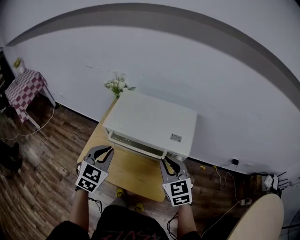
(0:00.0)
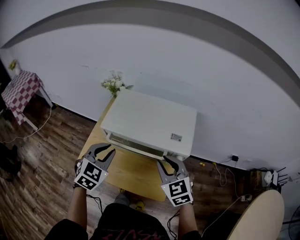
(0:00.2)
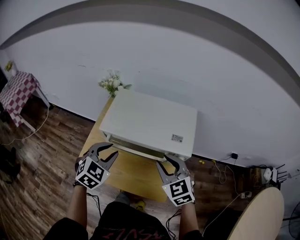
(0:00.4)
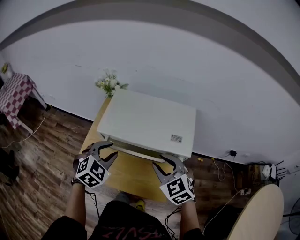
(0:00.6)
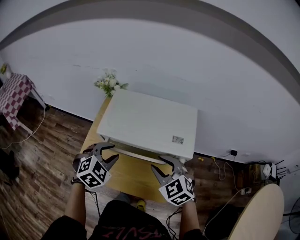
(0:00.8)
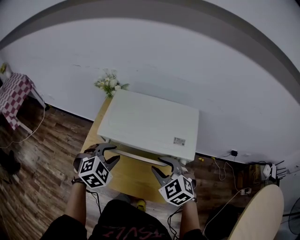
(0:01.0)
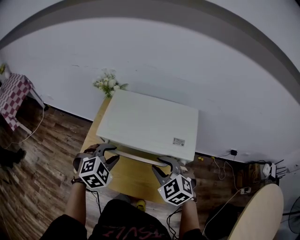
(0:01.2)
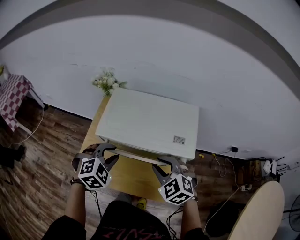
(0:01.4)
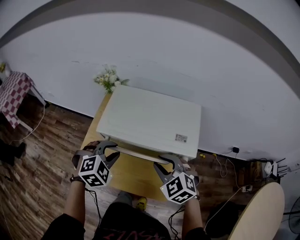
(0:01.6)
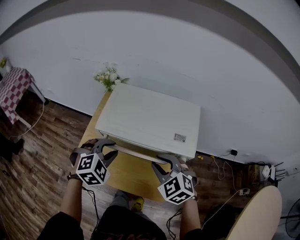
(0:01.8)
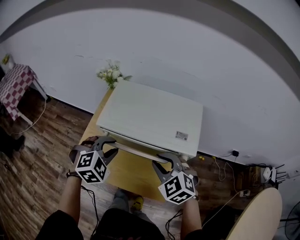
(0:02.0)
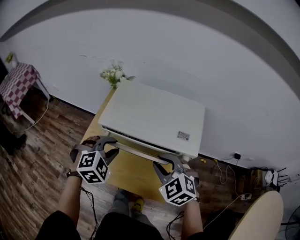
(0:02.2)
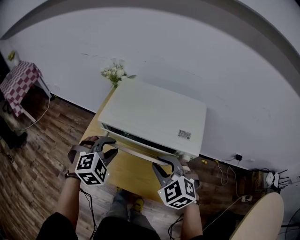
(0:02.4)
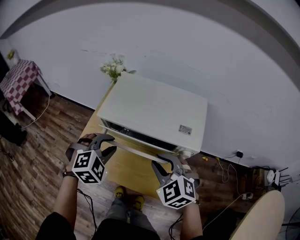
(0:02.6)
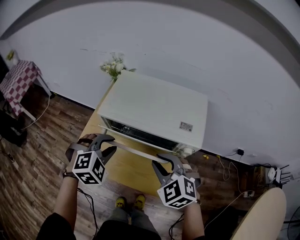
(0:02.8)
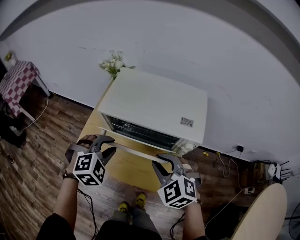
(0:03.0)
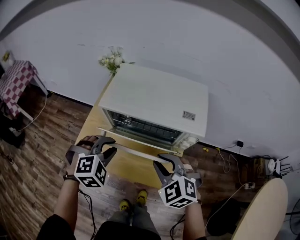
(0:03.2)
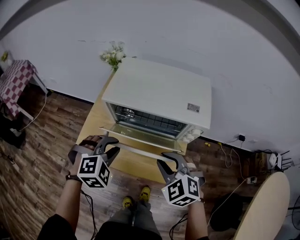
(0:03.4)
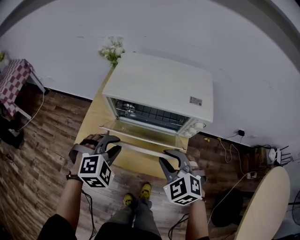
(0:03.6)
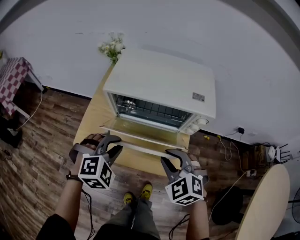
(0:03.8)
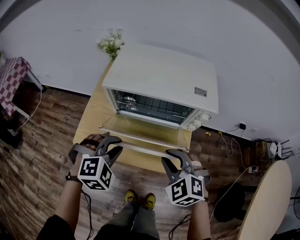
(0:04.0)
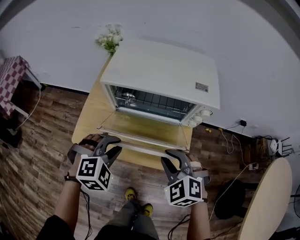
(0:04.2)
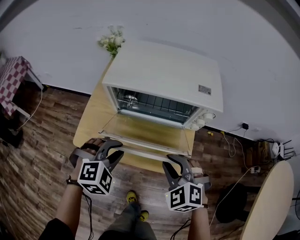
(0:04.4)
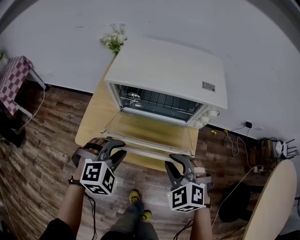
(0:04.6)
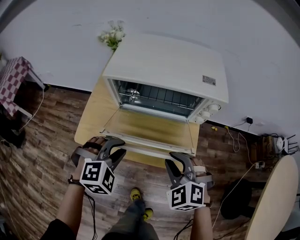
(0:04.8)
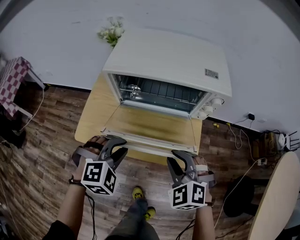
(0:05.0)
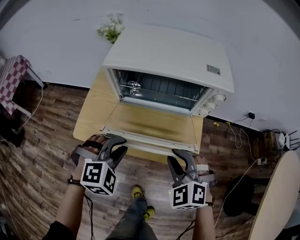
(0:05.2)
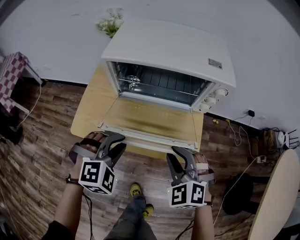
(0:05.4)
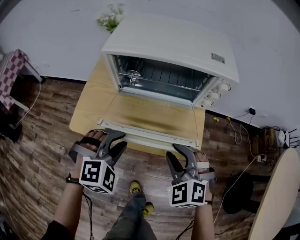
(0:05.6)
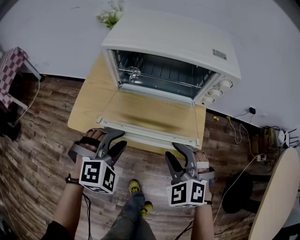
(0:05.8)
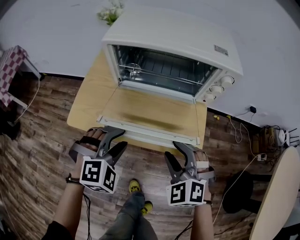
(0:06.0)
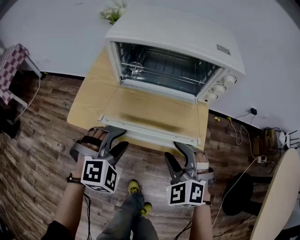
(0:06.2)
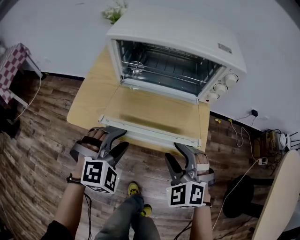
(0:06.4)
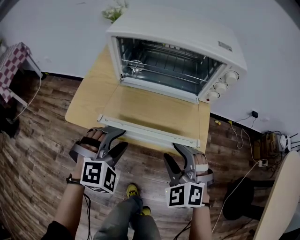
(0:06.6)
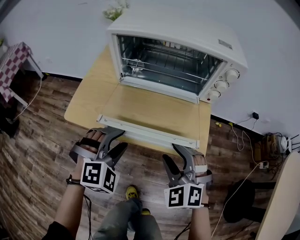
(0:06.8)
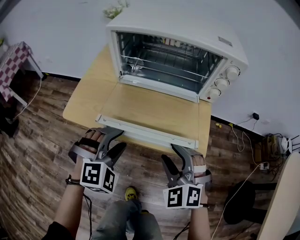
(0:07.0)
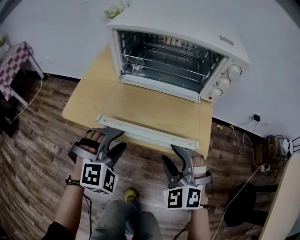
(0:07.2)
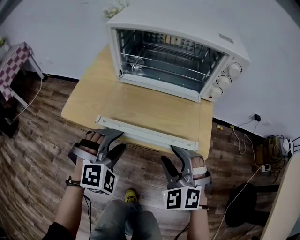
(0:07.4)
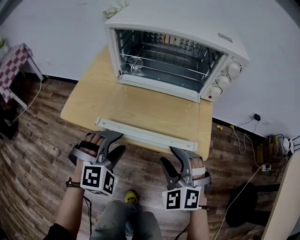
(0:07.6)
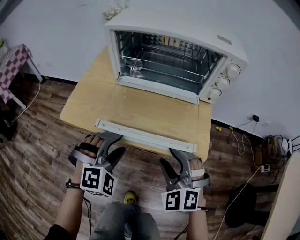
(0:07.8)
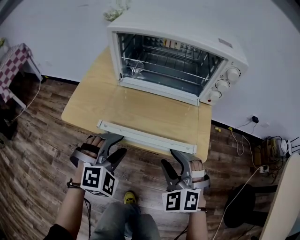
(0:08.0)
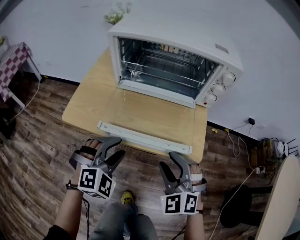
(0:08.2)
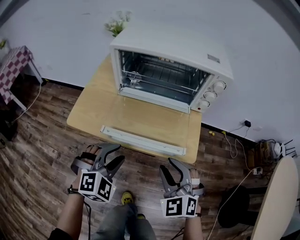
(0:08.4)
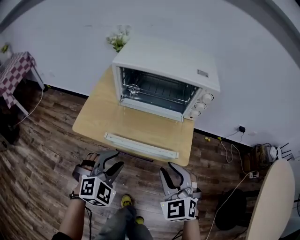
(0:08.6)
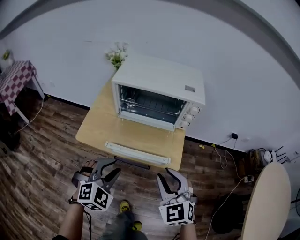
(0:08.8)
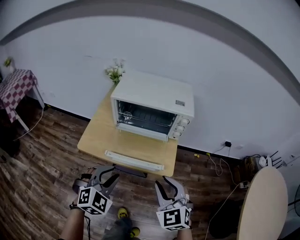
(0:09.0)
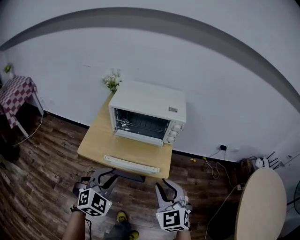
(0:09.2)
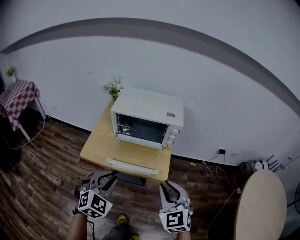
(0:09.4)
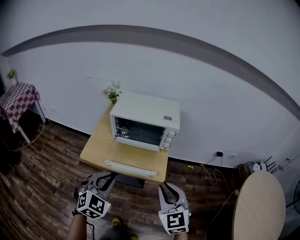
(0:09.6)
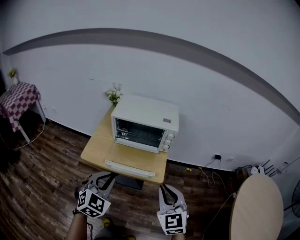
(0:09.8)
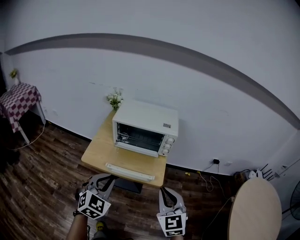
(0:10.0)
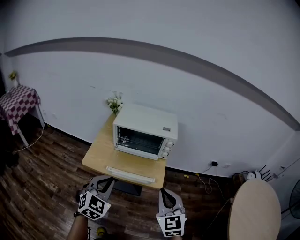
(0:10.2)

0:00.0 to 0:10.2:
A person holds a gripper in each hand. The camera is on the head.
0:00.0 to 0:01.4: The left gripper heads downward, covering roughly 5 cm, rotates roughly 40 degrees, and opens. The right gripper moves approximately 5 cm, and rotates about 30 degrees.
0:01.4 to 0:03.0: The grippers both shift backward by about 5 cm.
0:03.0 to 0:04.4: The right gripper goes some 10 cm downward and backward. The left gripper shifts about 10 cm backward and downward.
0:04.4 to 0:05.8: The grippers both shift downward by approximately 5 cm.
0:05.8 to 0:07.2: The two grippers go roughly 5 cm downward.
0:07.2 to 0:08.8: The right gripper moves upward, some 20 cm, turns by some 20 degrees, and closes, while the left gripper shifts about 15 cm upward and backward.
0:08.8 to 0:10.2: The grippers both shift upward and backward by about 20 cm. The left gripper changes its angle by some 20 degrees, and closes, while the right gripper closes up.

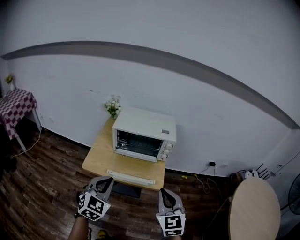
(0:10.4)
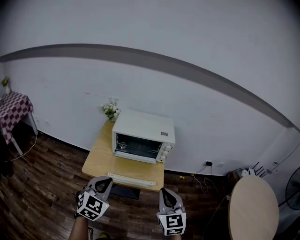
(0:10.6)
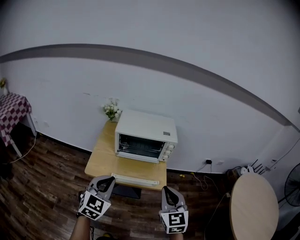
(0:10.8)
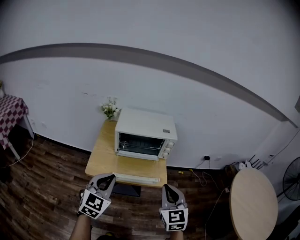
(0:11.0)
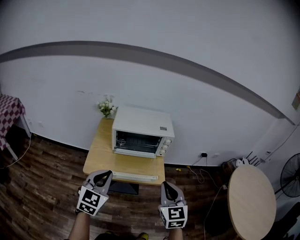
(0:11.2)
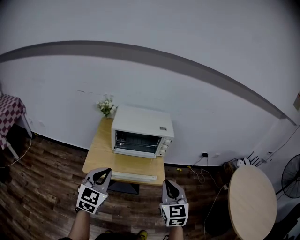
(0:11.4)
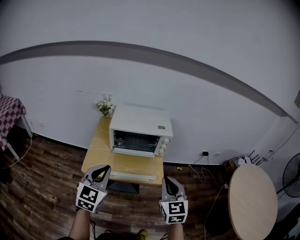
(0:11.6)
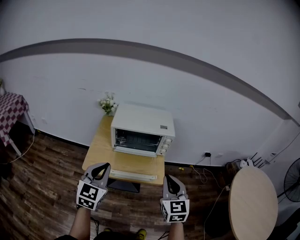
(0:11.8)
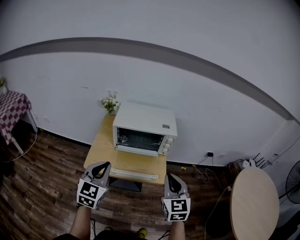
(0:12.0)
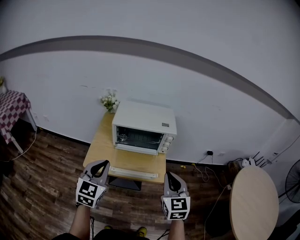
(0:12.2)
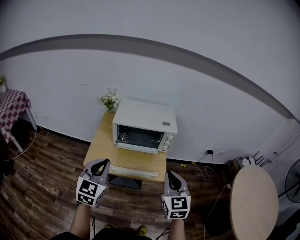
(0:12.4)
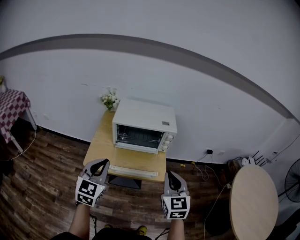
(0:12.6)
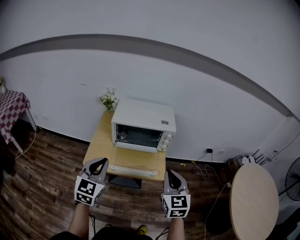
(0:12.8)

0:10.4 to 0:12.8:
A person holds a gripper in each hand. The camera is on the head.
0:10.4 to 0:11.6: The left gripper heads to the left and upward, covering some 10 cm.
0:11.6 to 0:12.8: The grippers make only small movements.

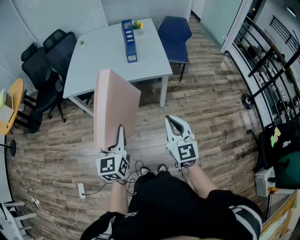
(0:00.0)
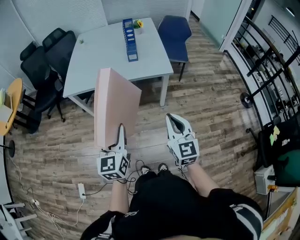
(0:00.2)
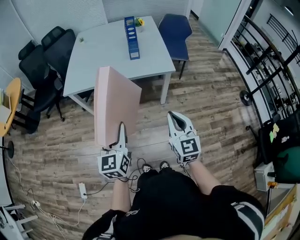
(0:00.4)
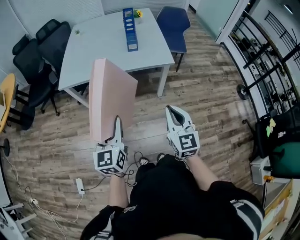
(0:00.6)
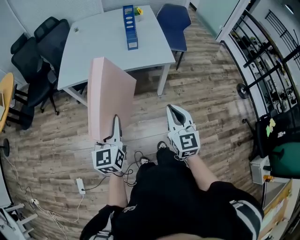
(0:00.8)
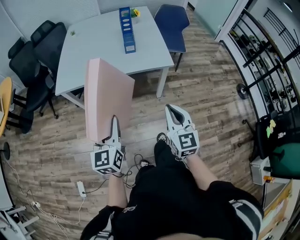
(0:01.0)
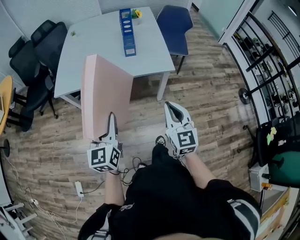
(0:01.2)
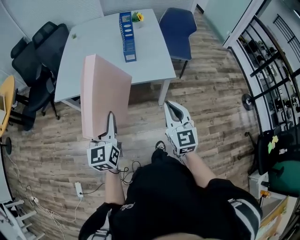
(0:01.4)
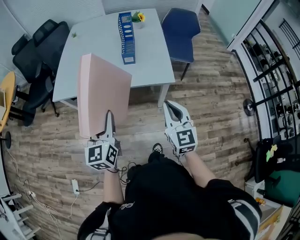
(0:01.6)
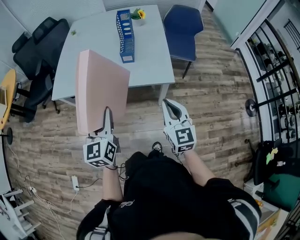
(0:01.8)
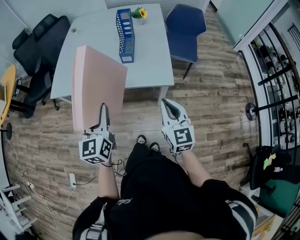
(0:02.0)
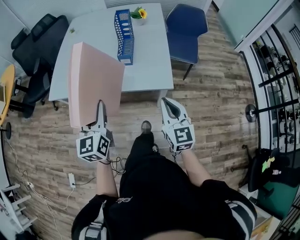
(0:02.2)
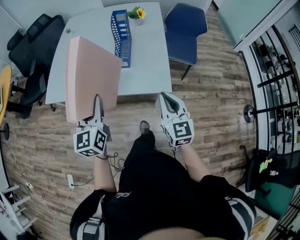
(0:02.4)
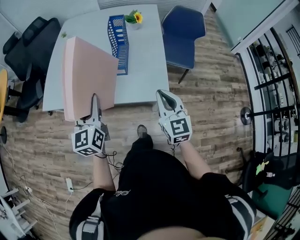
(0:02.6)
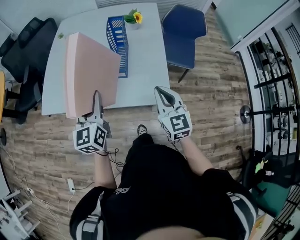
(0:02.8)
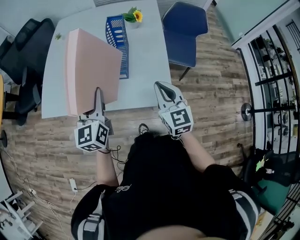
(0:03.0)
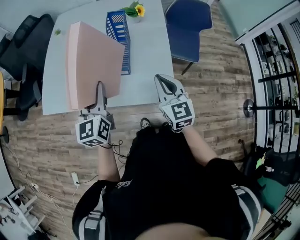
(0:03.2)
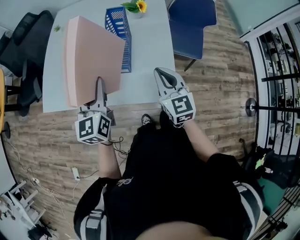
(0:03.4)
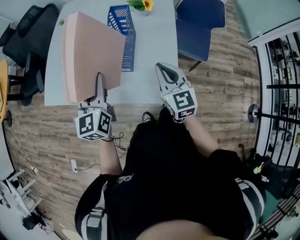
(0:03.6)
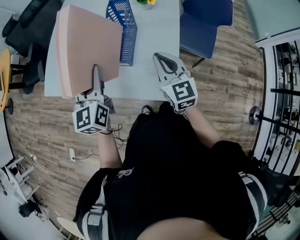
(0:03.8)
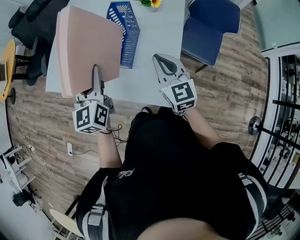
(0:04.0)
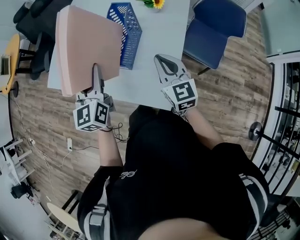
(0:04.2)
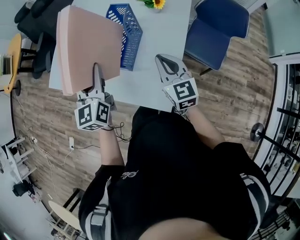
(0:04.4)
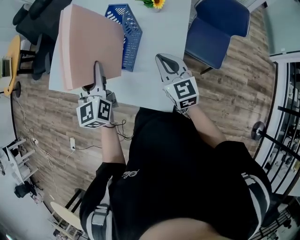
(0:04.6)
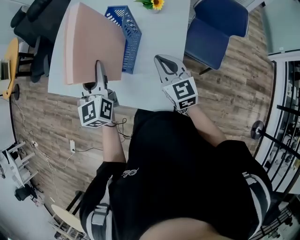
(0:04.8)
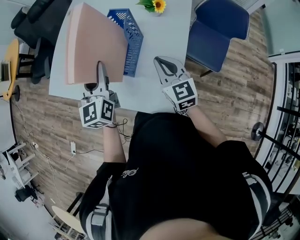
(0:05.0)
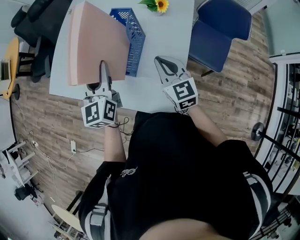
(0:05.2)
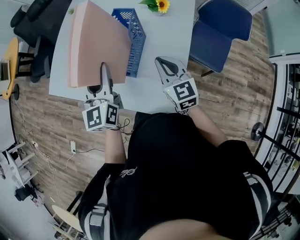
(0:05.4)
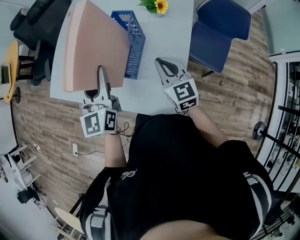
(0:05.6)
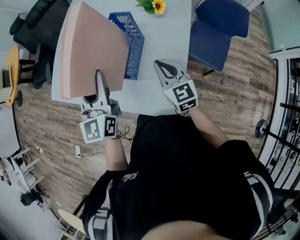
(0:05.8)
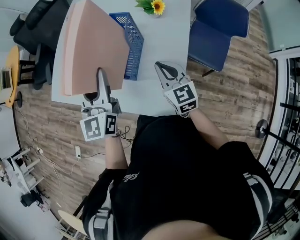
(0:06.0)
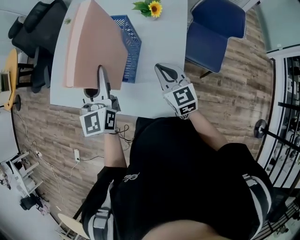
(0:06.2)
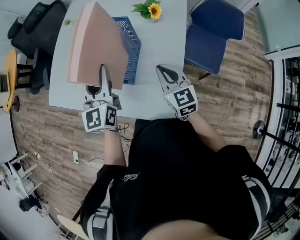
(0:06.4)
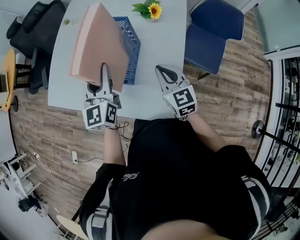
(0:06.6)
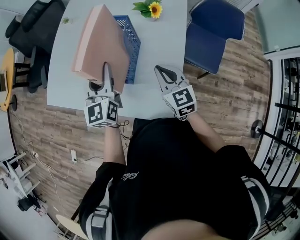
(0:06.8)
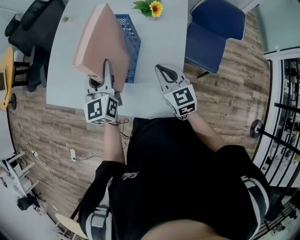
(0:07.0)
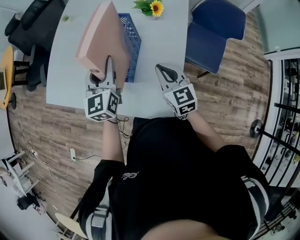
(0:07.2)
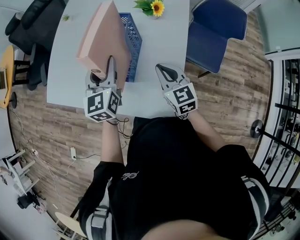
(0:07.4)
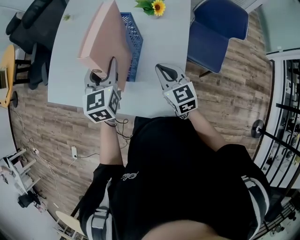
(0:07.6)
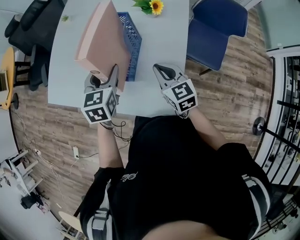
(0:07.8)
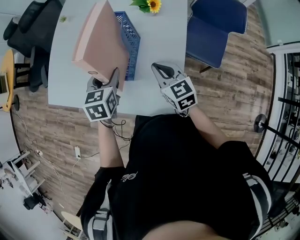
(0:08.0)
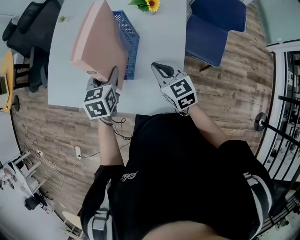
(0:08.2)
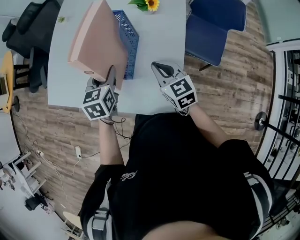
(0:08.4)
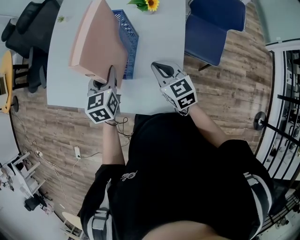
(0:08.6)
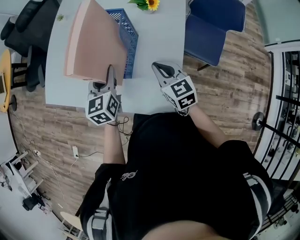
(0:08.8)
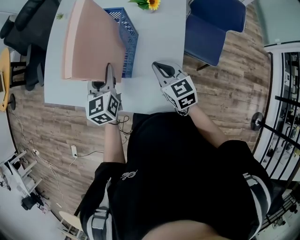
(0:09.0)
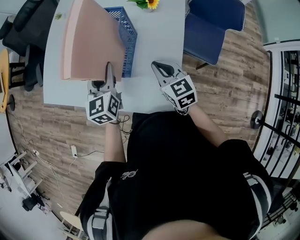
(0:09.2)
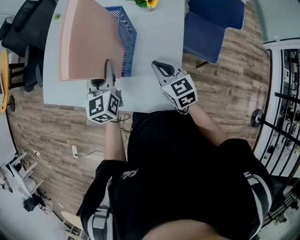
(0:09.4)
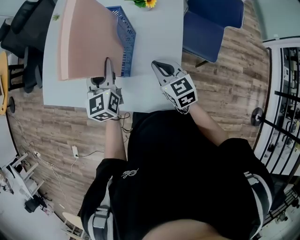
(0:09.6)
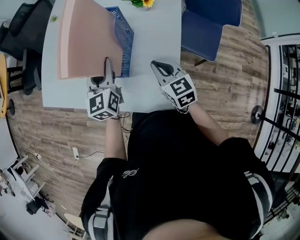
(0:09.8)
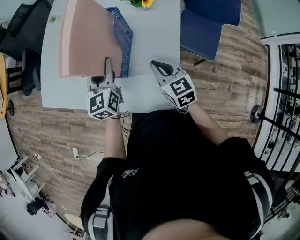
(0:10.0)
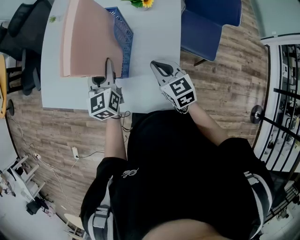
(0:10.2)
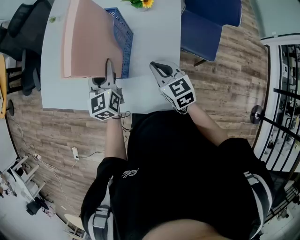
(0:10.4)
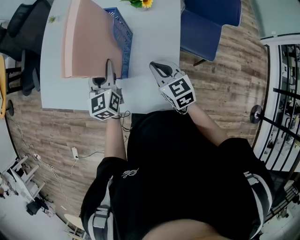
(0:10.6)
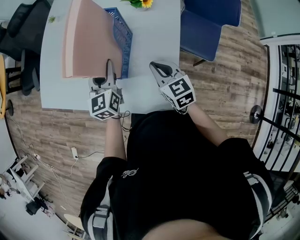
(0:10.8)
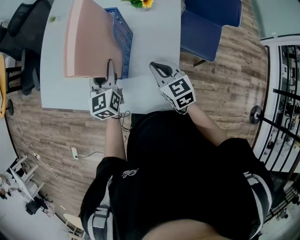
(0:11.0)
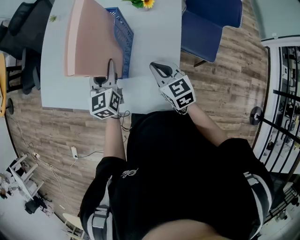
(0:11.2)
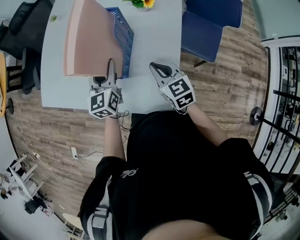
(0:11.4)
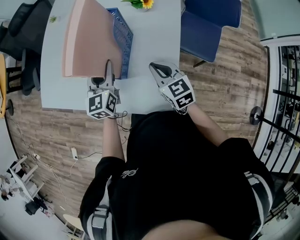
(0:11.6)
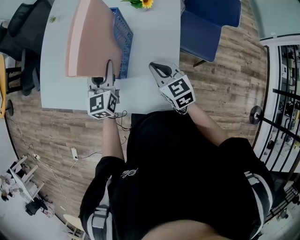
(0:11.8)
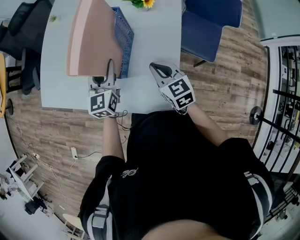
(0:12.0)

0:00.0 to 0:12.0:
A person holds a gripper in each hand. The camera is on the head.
0:00.0 to 0:01.6: The grippers both shift forward by about 20 cm.
0:01.6 to 0:03.0: Both grippers move forward, about 30 cm.
0:03.0 to 0:04.4: Both grippers travel together forward and to the right, some 15 cm. The right gripper changes its angle by approximately 20 degrees.
0:04.4 to 0:06.0: The grippers make only small movements.
0:06.0 to 0:07.6: The left gripper heads downward and forward, covering approximately 10 cm, and turns by roughly 20 degrees.
0:07.6 to 0:09.0: The left gripper moves downward, some 5 cm.
0:09.0 to 0:12.0: There are only small adjustments of the grippers.
